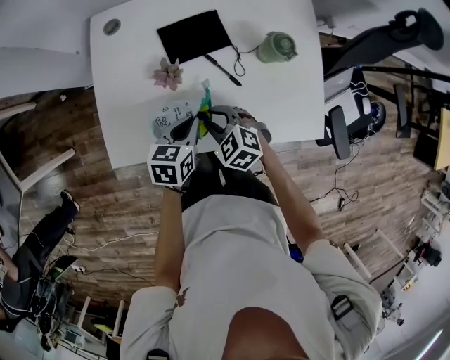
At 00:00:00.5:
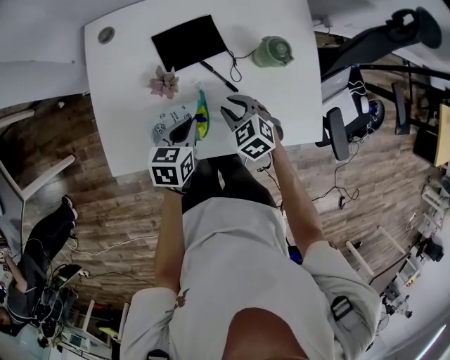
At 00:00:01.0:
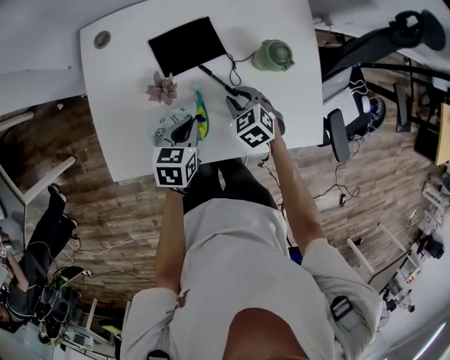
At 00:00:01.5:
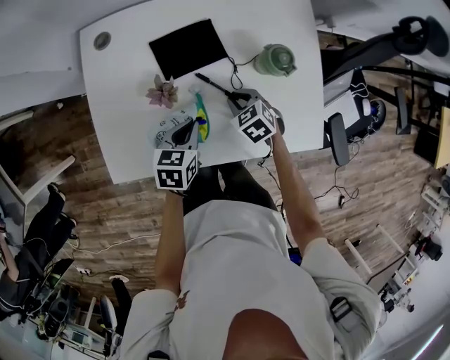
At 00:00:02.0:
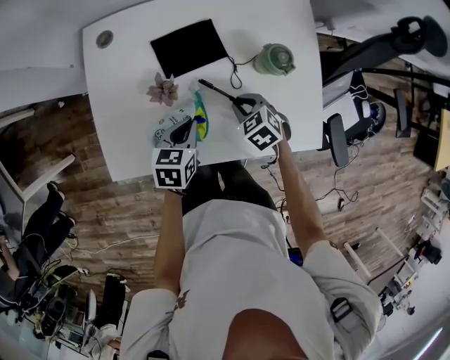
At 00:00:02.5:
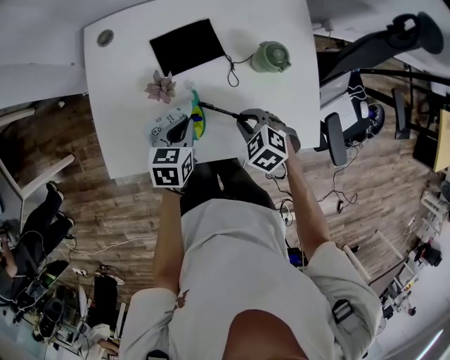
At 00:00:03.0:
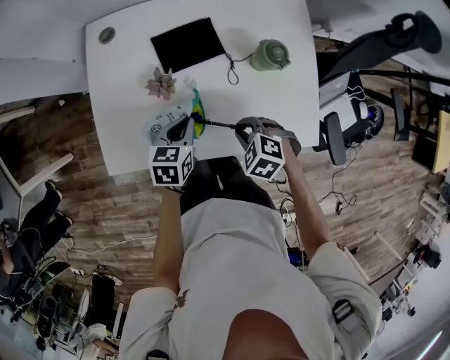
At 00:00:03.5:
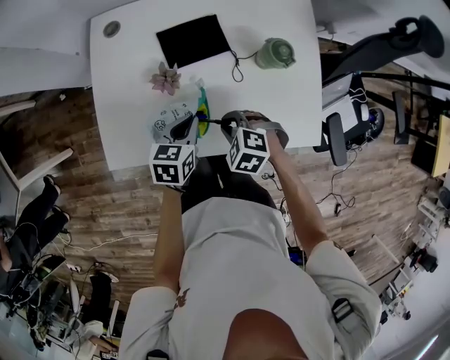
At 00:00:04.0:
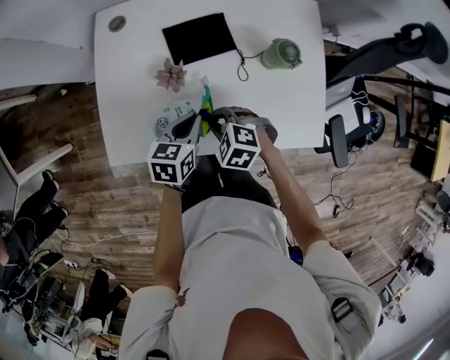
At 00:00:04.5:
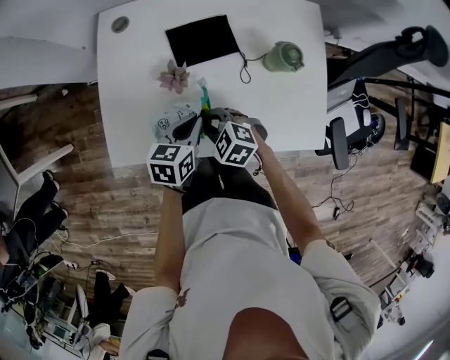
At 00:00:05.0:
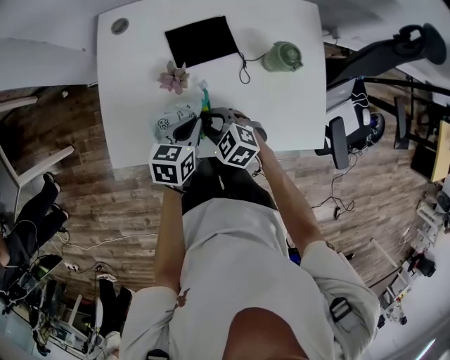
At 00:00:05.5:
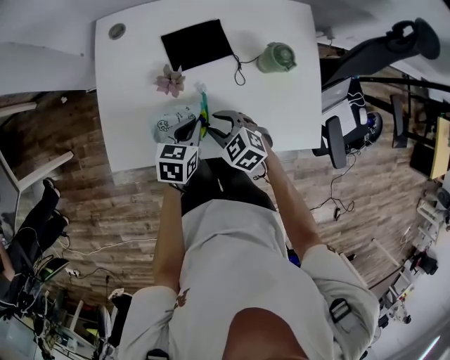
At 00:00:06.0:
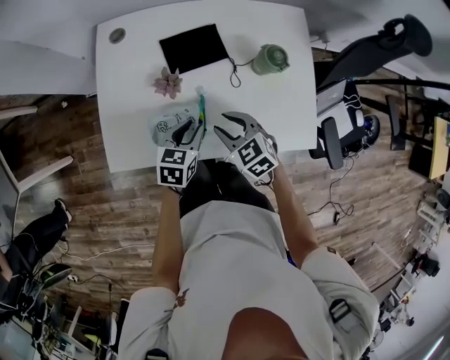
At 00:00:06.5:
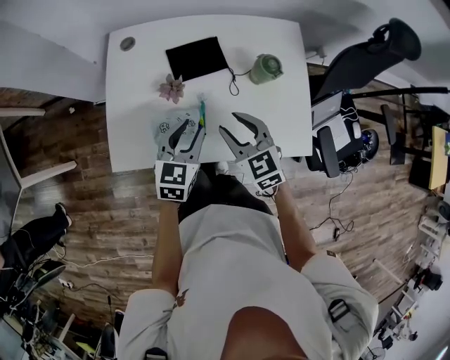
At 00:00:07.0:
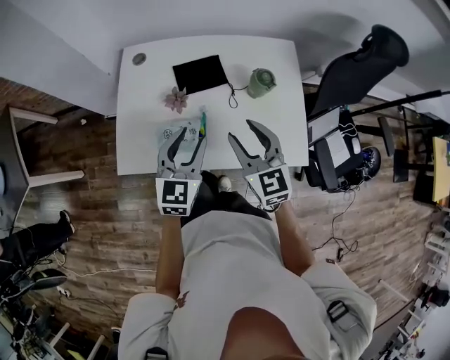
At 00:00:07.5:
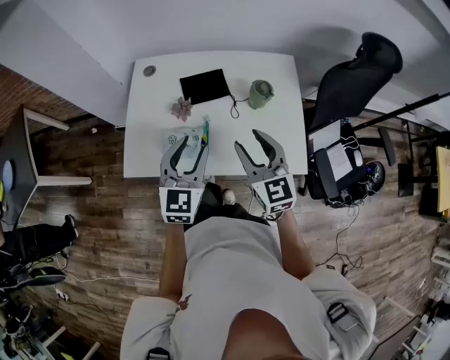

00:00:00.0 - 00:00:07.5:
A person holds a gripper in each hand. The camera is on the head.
00:00:00.0 - 00:00:02.0: The right gripper goes roughly 15 cm to the right and forward.
00:00:02.0 - 00:00:04.0: The right gripper shifts some 15 cm to the left and backward, and swivels approximately 30 degrees.
00:00:04.0 - 00:00:05.5: The grippers stay close to where they were, moving slightly.
00:00:05.5 - 00:00:07.5: The right gripper is displaced upward and to the right by about 25 cm, and tilts its fingers about 40 degrees upward. Meanwhile the left gripper is displaced upward by some 25 cm, angles its fingers upward, by approximately 30 degrees, and opens its fingers.

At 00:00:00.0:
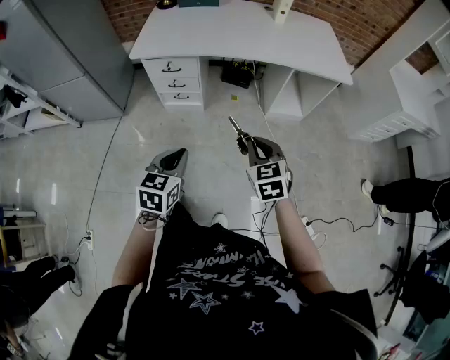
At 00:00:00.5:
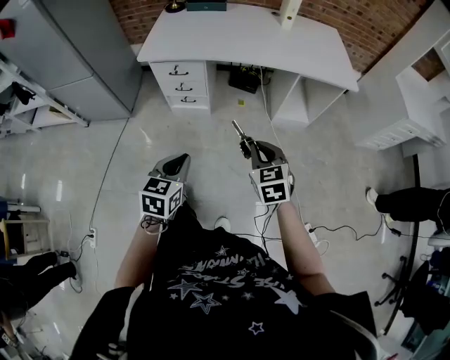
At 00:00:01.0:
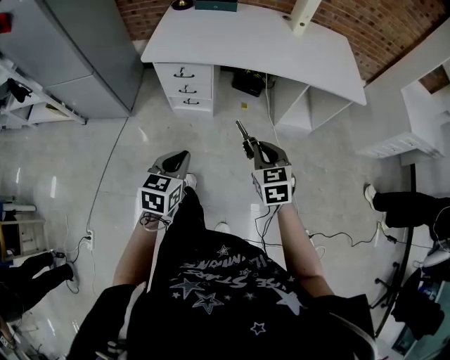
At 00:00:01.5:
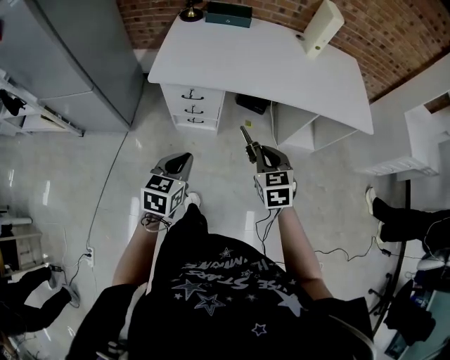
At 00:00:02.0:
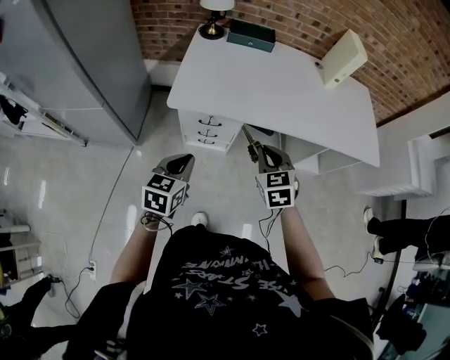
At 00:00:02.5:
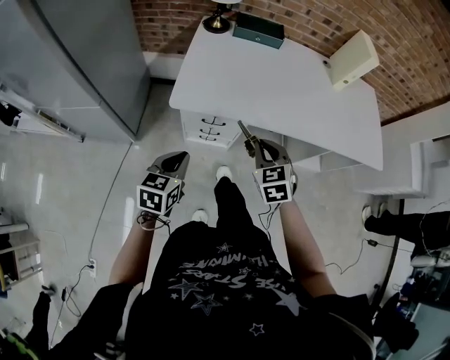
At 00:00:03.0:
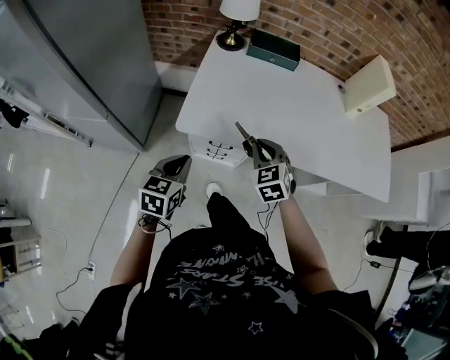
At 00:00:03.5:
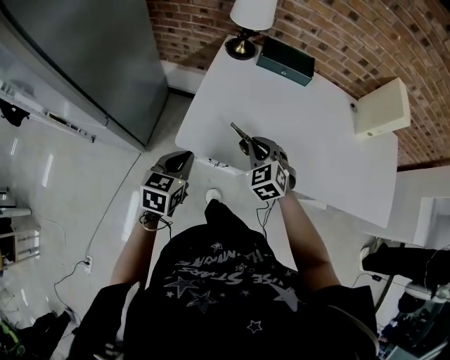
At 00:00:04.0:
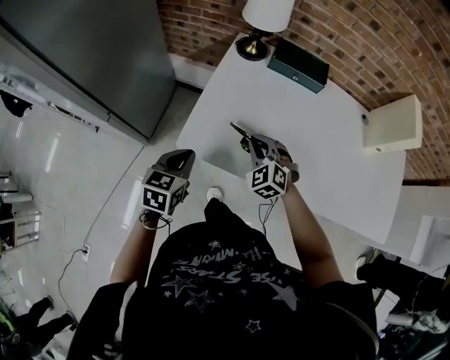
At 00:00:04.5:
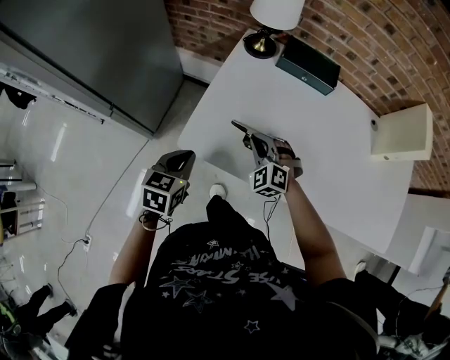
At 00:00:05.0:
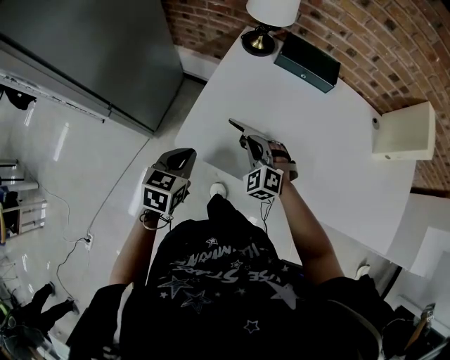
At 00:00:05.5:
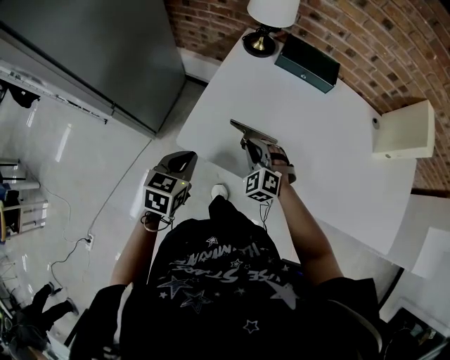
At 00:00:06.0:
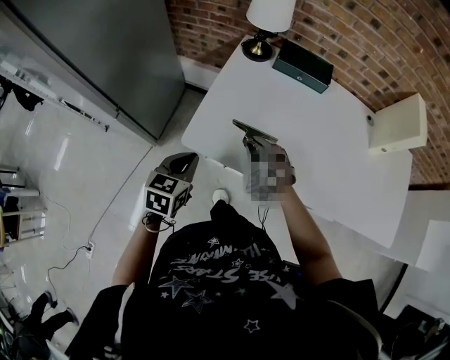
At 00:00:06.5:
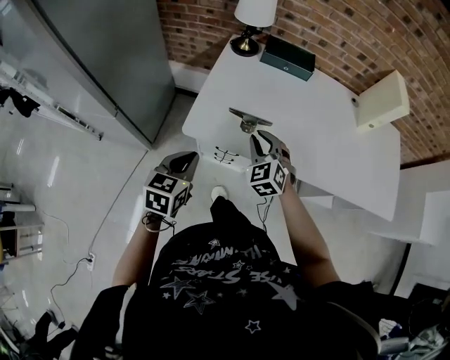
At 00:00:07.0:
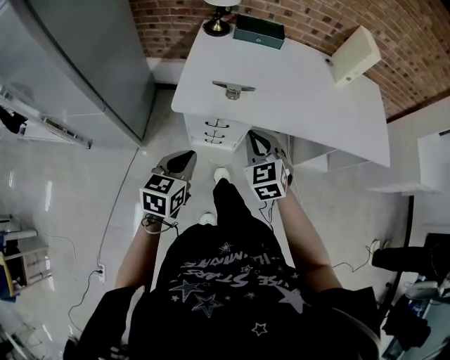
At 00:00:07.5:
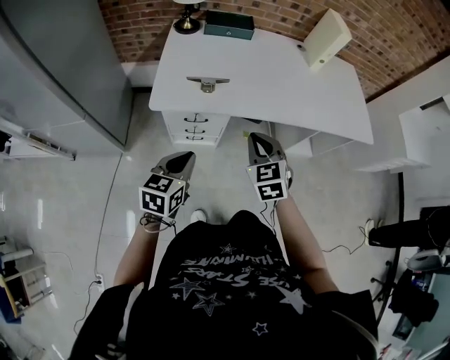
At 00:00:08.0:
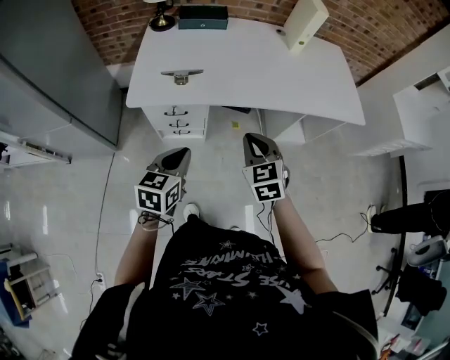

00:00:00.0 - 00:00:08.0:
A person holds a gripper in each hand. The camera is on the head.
00:00:00.0 - 00:00:02.0: Both grippers move forward and to the left, about 40 cm.
00:00:02.0 - 00:00:04.0: The right gripper goes roughly 30 cm forward and to the left, and turns by about 40 degrees. The left gripper moves forward, roughly 25 cm.
00:00:04.0 - 00:00:06.0: The right gripper opens up.
00:00:06.0 - 00:00:08.0: The right gripper travels backward, to the right and upward by approximately 35 cm, twists roughly 40 degrees clockwise, seen from behind, and closes. The left gripper shifts approximately 25 cm backward and to the right, and changes its angle by roughly 20 degrees.

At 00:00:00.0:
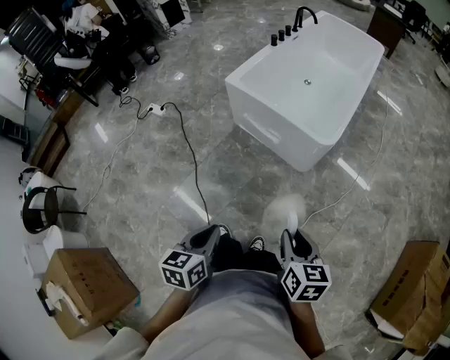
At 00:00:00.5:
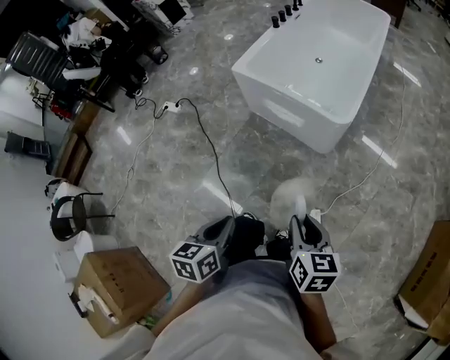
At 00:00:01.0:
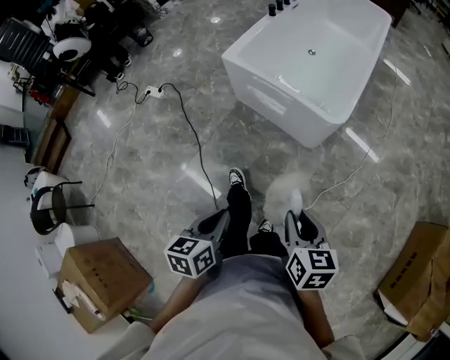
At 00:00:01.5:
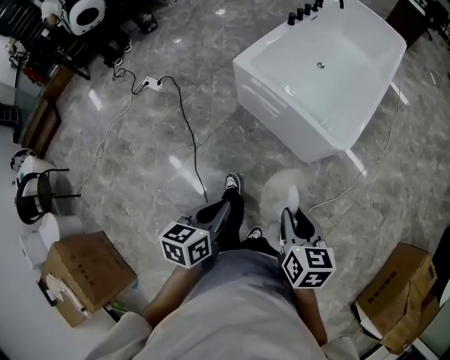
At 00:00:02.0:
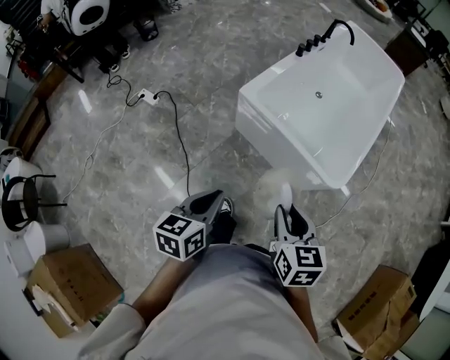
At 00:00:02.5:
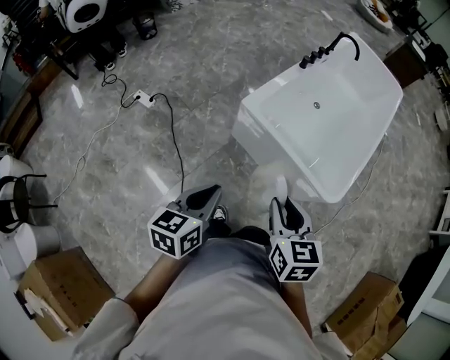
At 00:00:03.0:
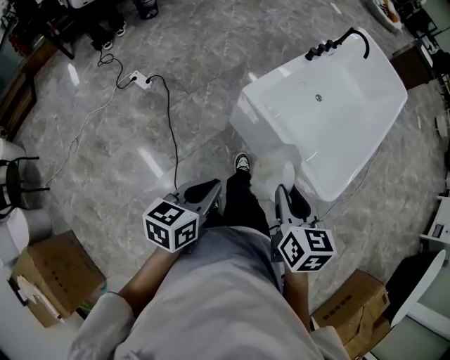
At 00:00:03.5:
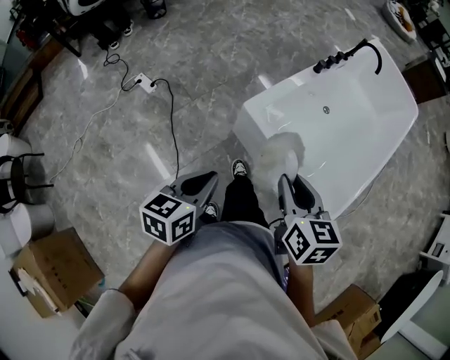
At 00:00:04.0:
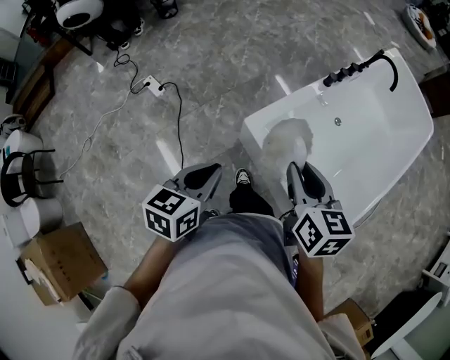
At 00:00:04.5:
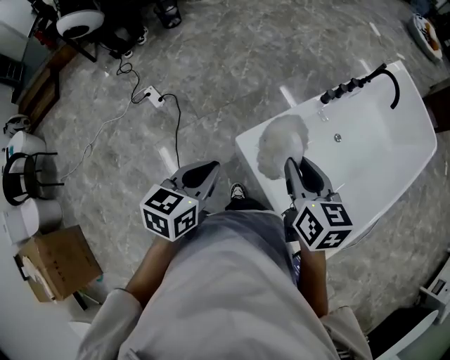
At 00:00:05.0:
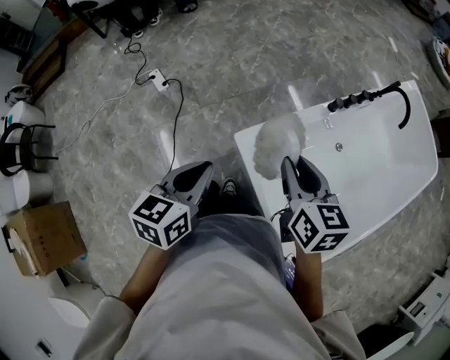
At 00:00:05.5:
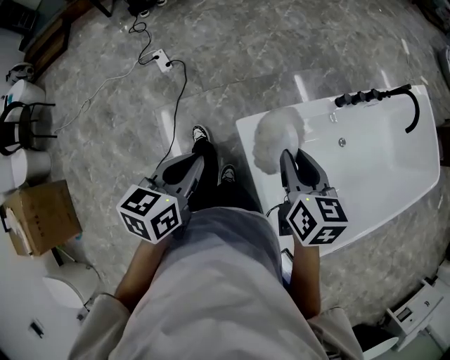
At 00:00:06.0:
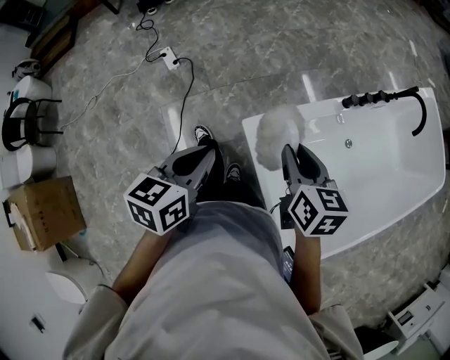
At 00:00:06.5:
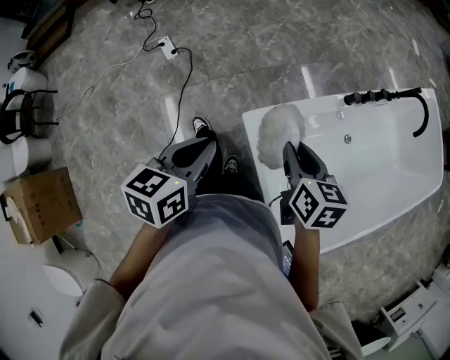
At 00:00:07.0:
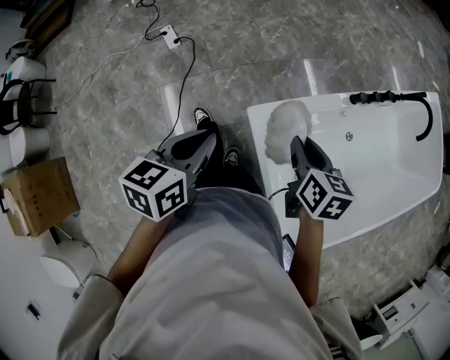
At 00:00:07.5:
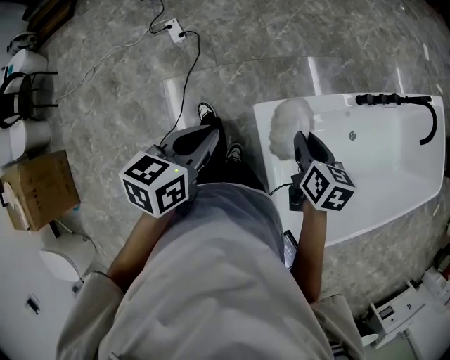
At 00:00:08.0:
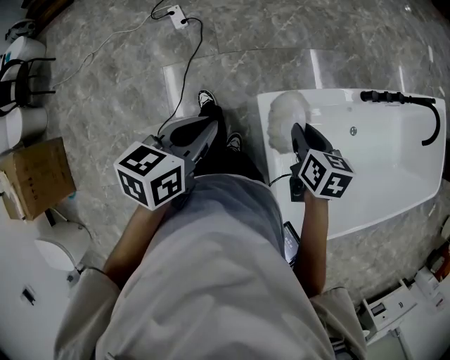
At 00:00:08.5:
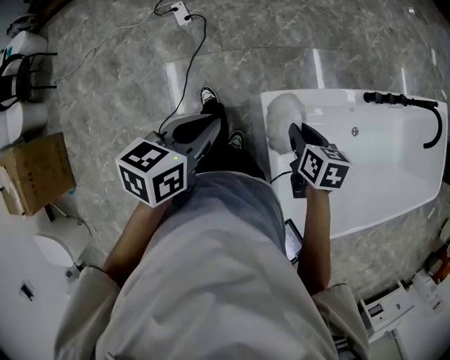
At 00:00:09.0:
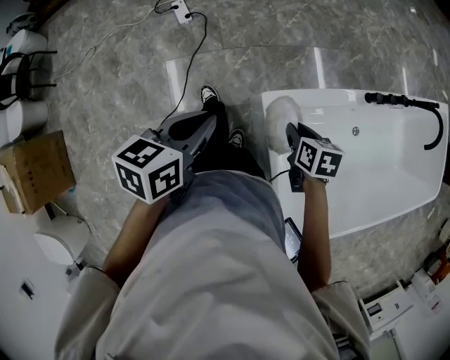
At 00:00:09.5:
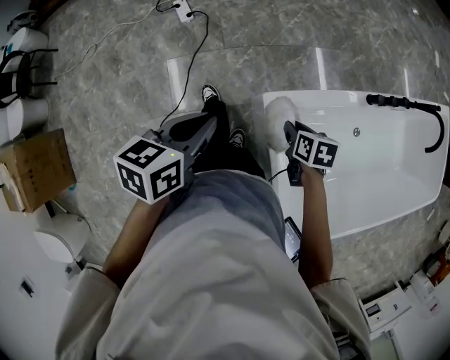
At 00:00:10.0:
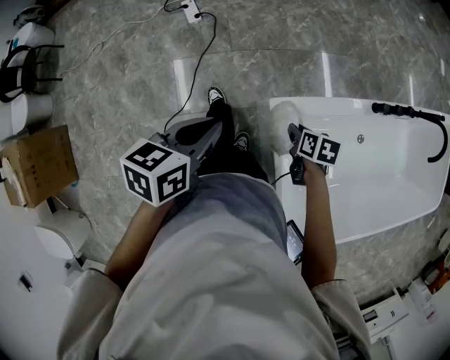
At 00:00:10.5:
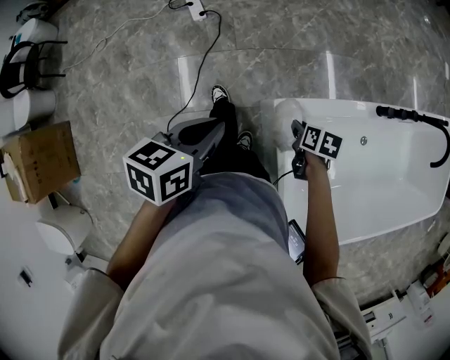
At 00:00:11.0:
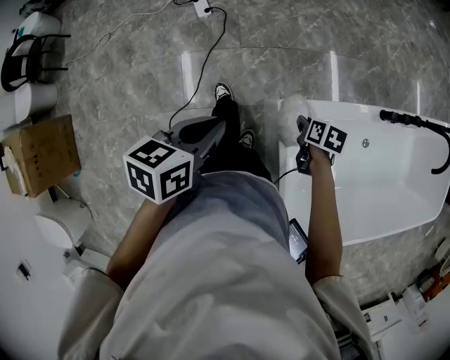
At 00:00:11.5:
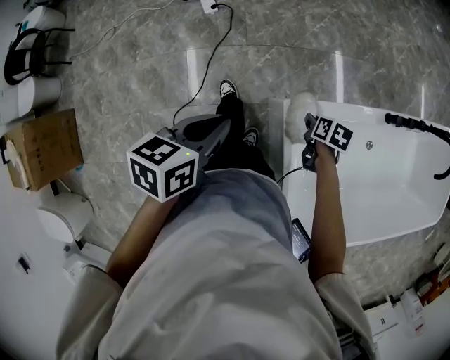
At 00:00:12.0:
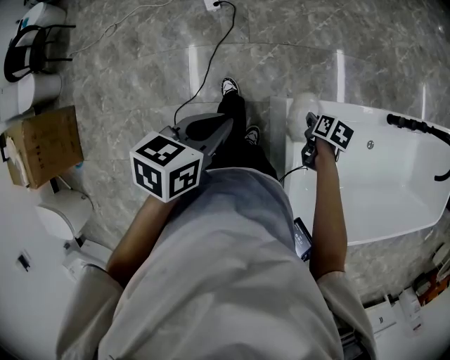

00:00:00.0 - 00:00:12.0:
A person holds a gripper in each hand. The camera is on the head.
00:00:00.0 - 00:00:02.0: The right gripper travels forward and to the left by some 35 cm, while the left gripper travels forward by roughly 30 cm.
00:00:02.0 - 00:00:04.0: The two grippers go roughly 35 cm forward.
00:00:04.0 - 00:00:06.0: The right gripper is displaced forward and downward by some 15 cm, while the left gripper travels forward by roughly 10 cm.
00:00:06.0 - 00:00:08.0: The right gripper goes about 10 cm downward. The left gripper heads to the left, covering some 5 cm.
00:00:08.0 - 00:00:10.0: The right gripper travels downward by approximately 15 cm.
00:00:10.0 - 00:00:12.0: The right gripper shifts by approximately 5 cm.
